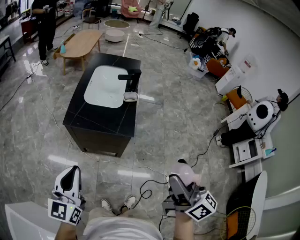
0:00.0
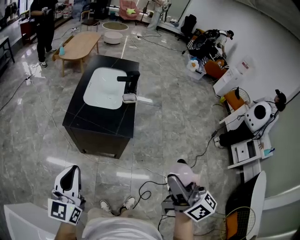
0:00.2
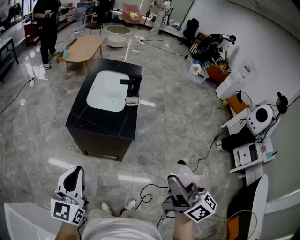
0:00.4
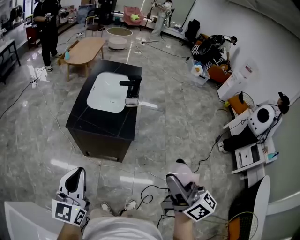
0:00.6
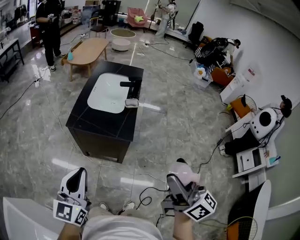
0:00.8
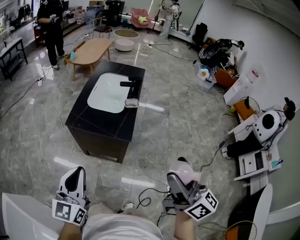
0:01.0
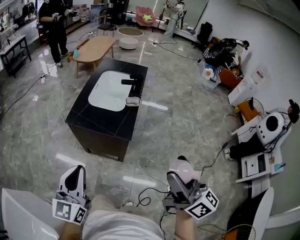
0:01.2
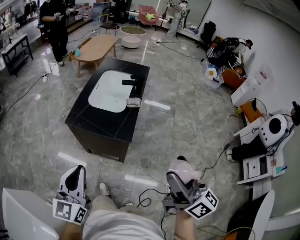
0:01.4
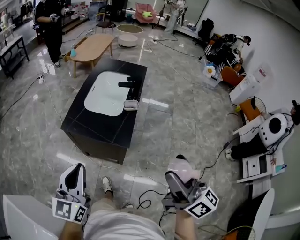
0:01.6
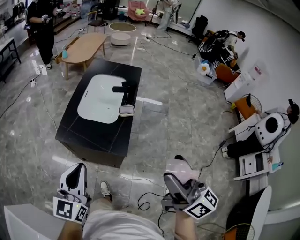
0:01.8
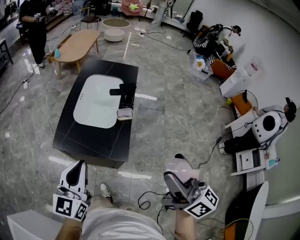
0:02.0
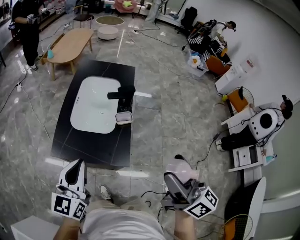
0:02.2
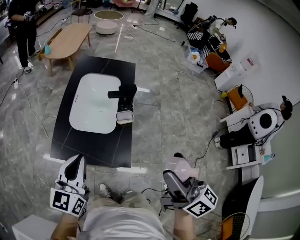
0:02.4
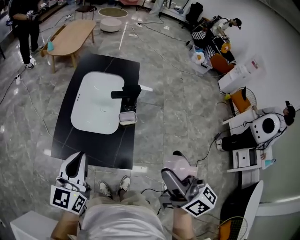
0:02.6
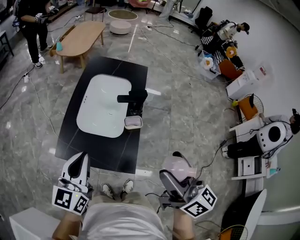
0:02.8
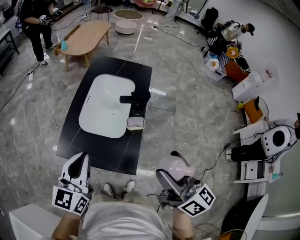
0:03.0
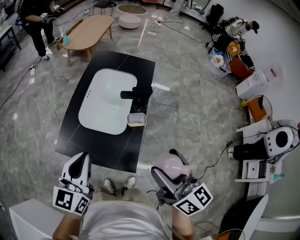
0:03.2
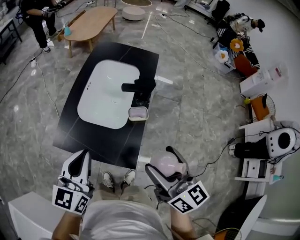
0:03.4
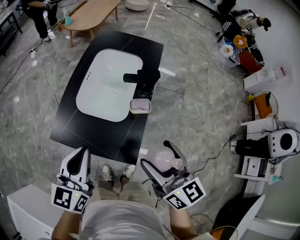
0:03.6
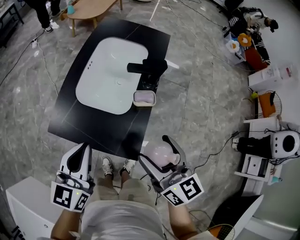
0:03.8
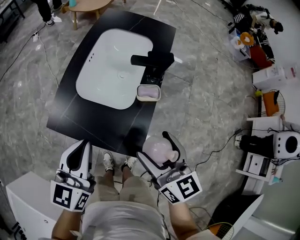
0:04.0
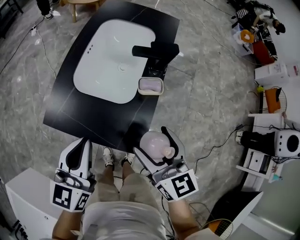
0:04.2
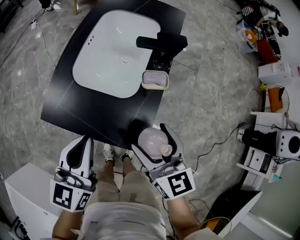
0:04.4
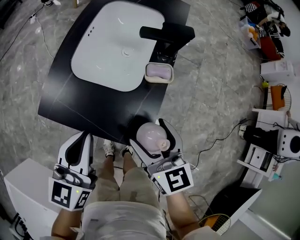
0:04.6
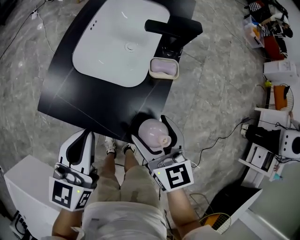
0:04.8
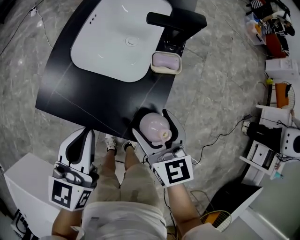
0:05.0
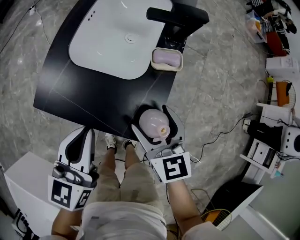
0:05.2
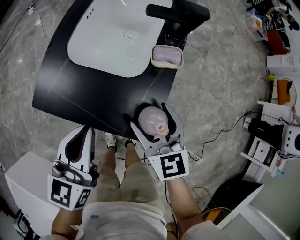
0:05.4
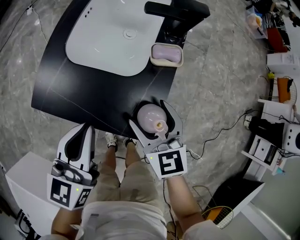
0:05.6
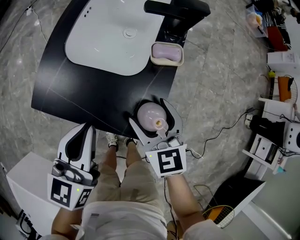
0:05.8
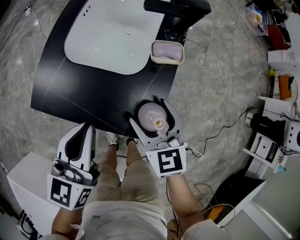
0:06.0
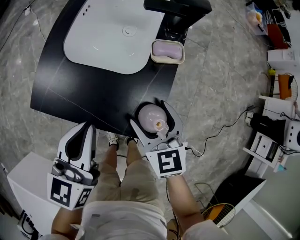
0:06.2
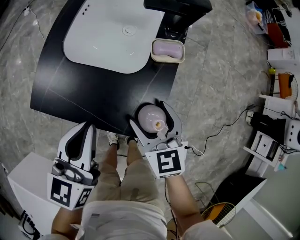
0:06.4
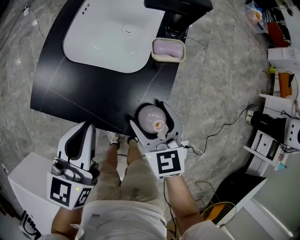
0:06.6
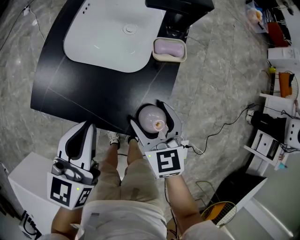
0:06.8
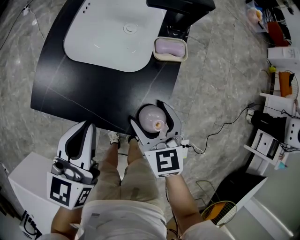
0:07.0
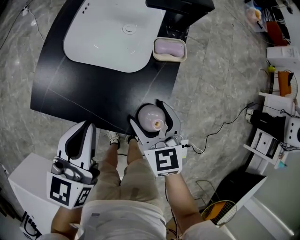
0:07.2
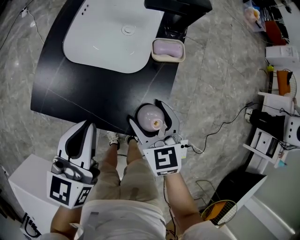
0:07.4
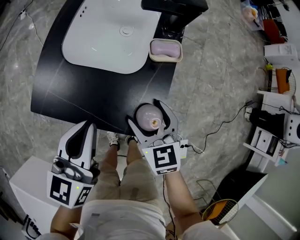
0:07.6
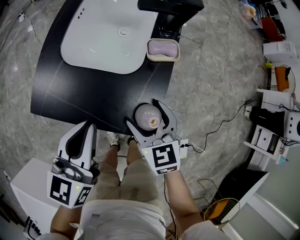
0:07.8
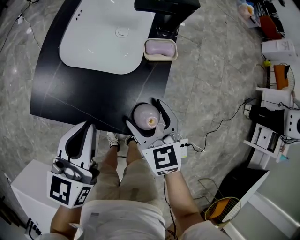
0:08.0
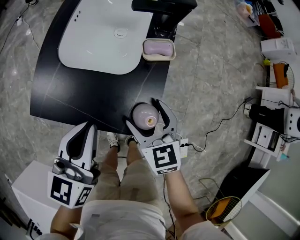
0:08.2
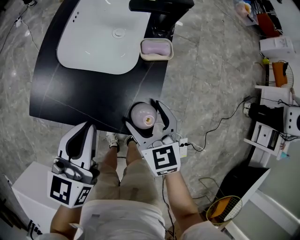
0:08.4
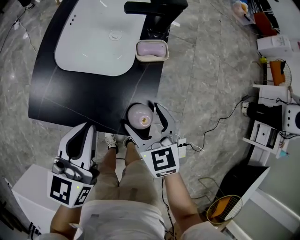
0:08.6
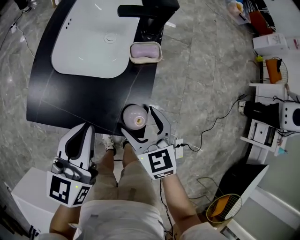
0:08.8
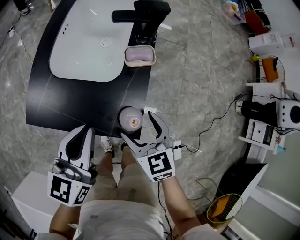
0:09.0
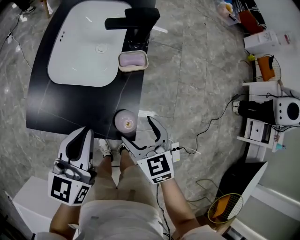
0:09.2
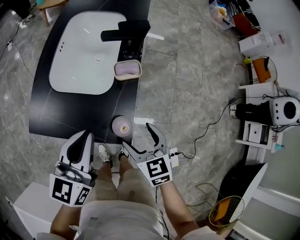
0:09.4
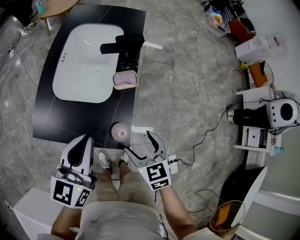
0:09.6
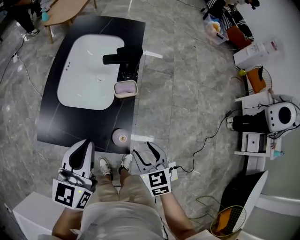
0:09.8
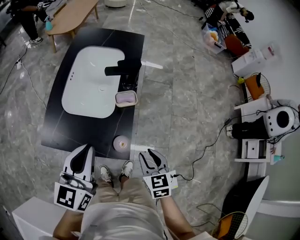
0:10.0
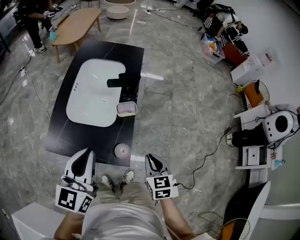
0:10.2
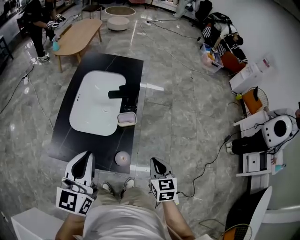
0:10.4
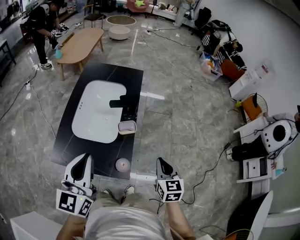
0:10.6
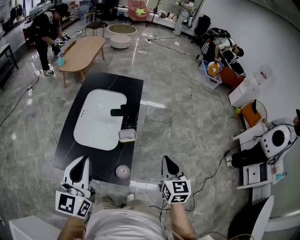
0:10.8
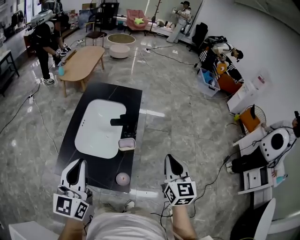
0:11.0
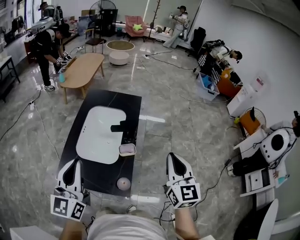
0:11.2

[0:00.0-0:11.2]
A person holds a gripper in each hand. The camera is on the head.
0:00.0 to 0:01.6: The left gripper moves to the right, approximately 10 cm. The right gripper travels to the right and forward by some 10 cm.
0:01.6 to 0:03.2: Both grippers move forward, some 25 cm.
0:03.2 to 0:04.8: The right gripper heads downward, covering about 25 cm, and rotates approximately 30 degrees, while the left gripper travels downward by about 15 cm.
0:04.8 to 0:06.4: The right gripper moves downward, some 10 cm.
0:06.4 to 0:08.0: The grippers move only a little.
0:08.0 to 0:09.6: The right gripper goes about 10 cm to the right and backward. The left gripper moves upward and to the right, roughly 10 cm.
0:09.6 to 0:11.2: The left gripper heads upward, covering roughly 20 cm, and rotates some 20 degrees. The right gripper travels upward by approximately 30 cm, points its fingers about 30 degrees further upward, and closes up.

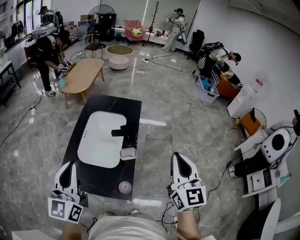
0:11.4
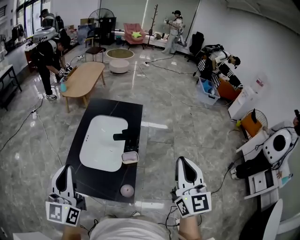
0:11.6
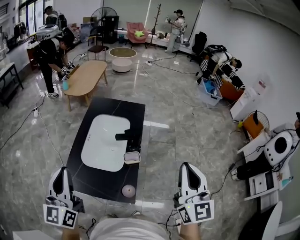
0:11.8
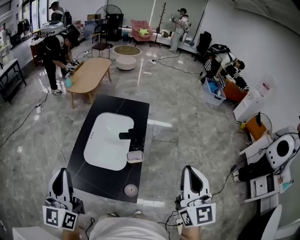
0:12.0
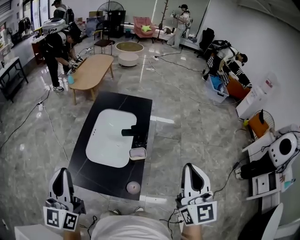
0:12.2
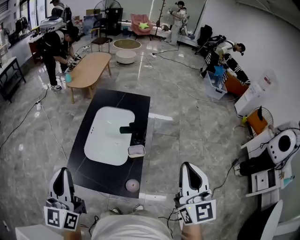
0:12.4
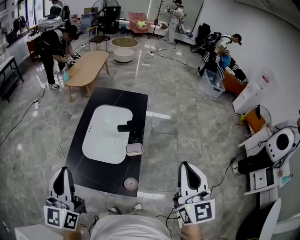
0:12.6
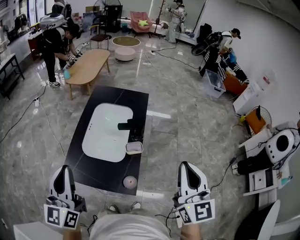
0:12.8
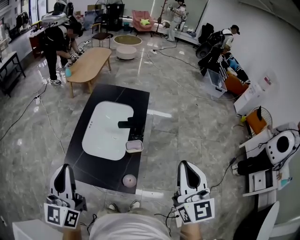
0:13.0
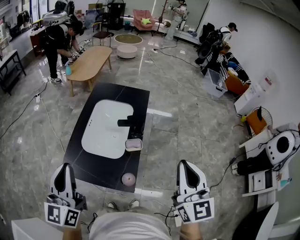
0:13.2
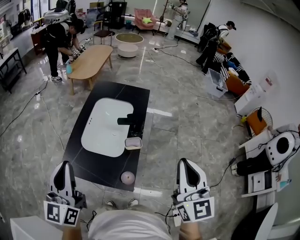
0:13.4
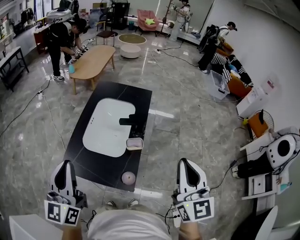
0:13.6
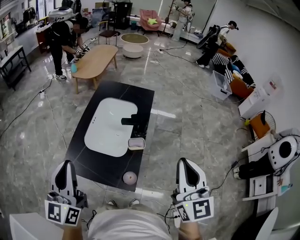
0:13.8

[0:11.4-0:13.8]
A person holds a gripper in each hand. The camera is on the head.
0:11.4 to 0:12.6: The left gripper ends up about 5 cm from where it was.
0:12.6 to 0:13.8: The grippers stay close to where they were, moving slightly.

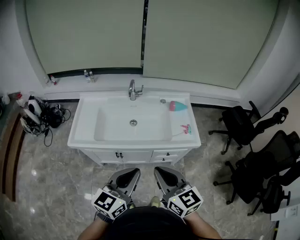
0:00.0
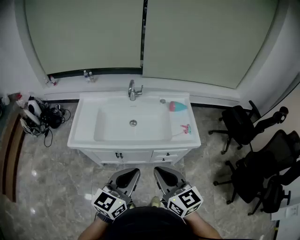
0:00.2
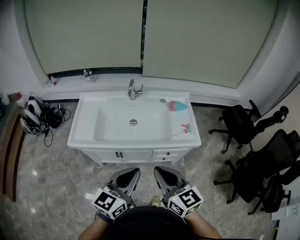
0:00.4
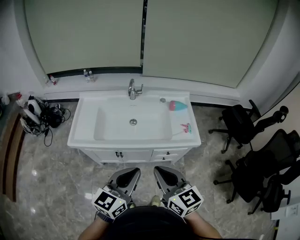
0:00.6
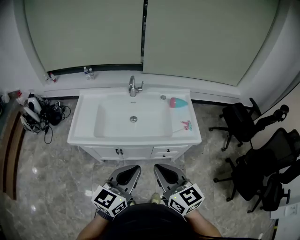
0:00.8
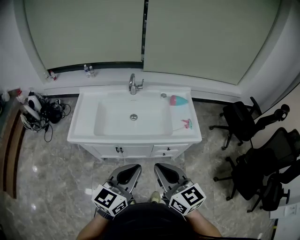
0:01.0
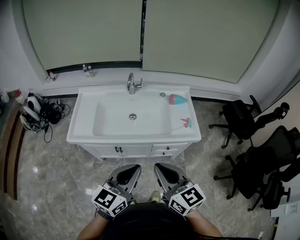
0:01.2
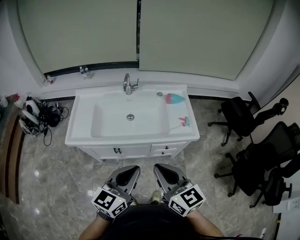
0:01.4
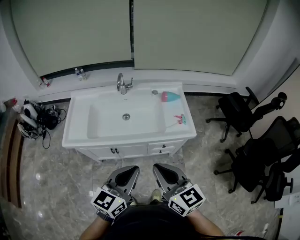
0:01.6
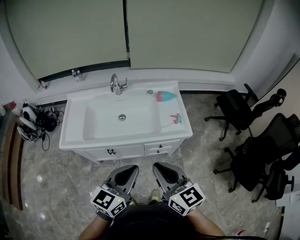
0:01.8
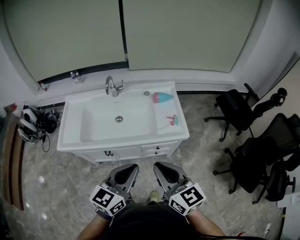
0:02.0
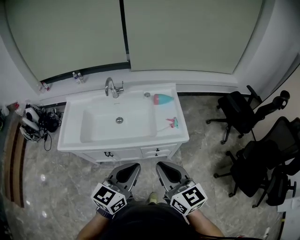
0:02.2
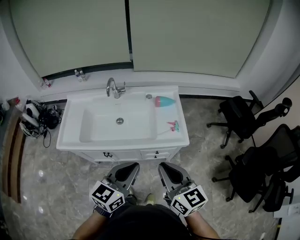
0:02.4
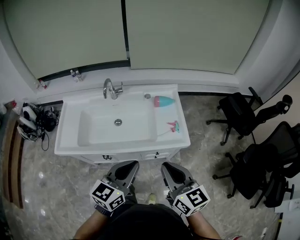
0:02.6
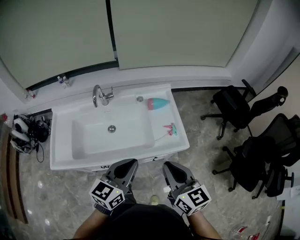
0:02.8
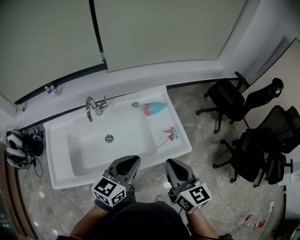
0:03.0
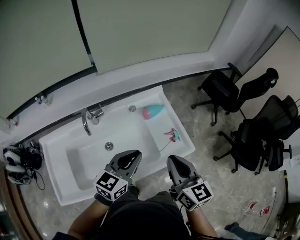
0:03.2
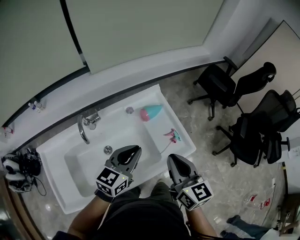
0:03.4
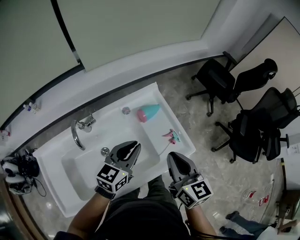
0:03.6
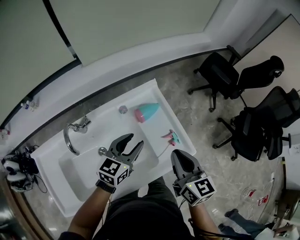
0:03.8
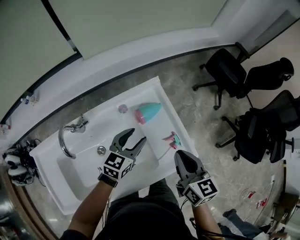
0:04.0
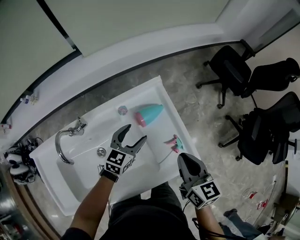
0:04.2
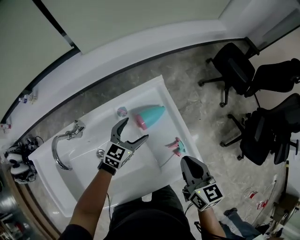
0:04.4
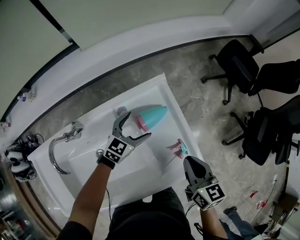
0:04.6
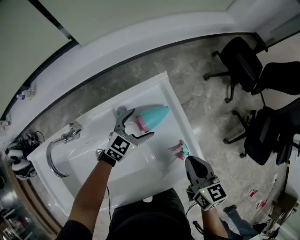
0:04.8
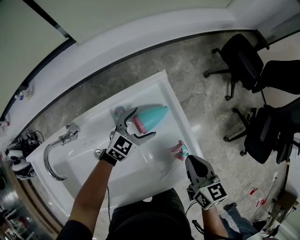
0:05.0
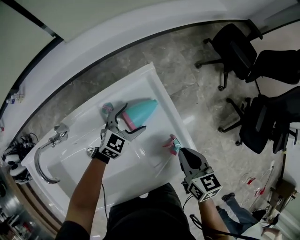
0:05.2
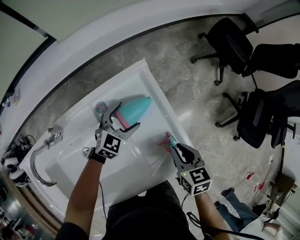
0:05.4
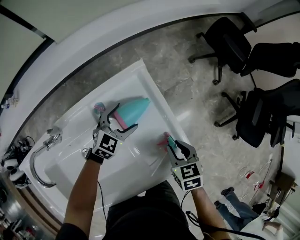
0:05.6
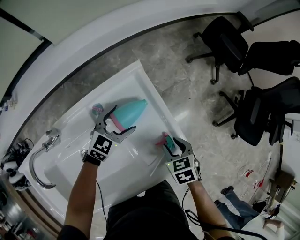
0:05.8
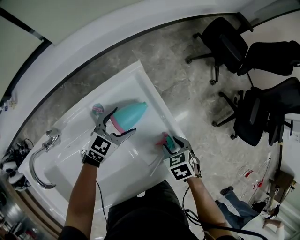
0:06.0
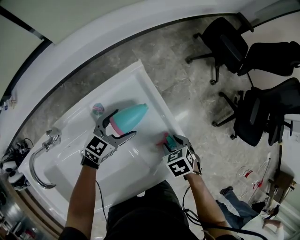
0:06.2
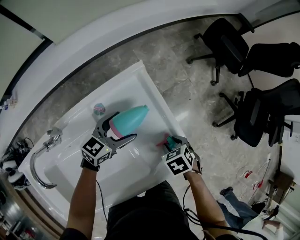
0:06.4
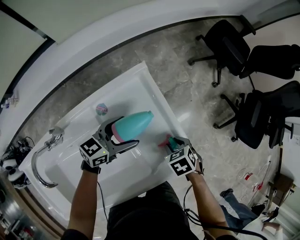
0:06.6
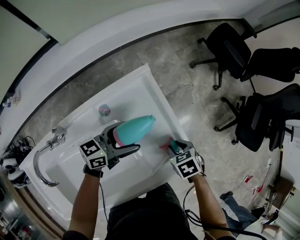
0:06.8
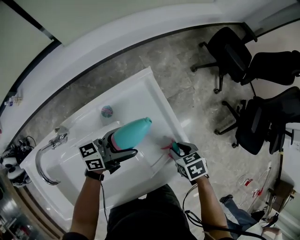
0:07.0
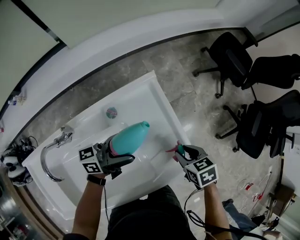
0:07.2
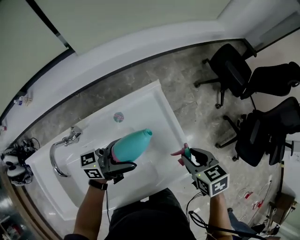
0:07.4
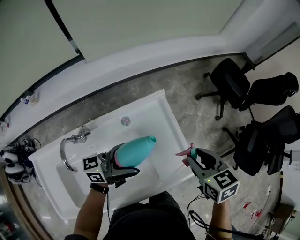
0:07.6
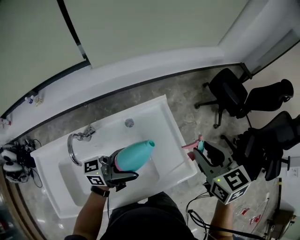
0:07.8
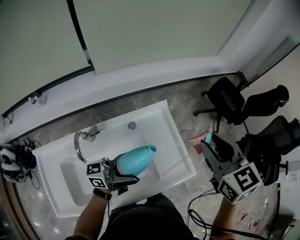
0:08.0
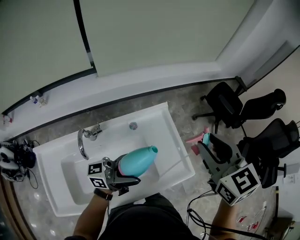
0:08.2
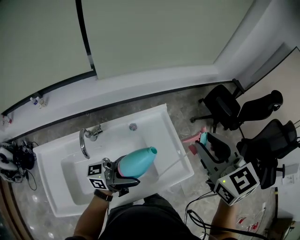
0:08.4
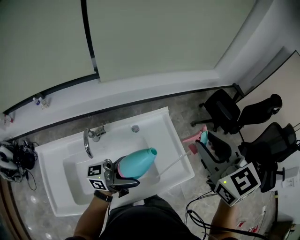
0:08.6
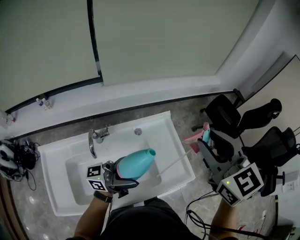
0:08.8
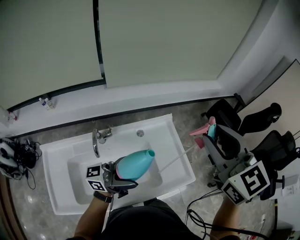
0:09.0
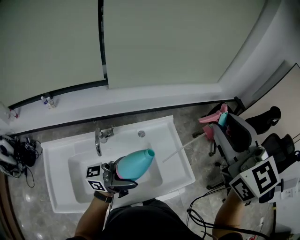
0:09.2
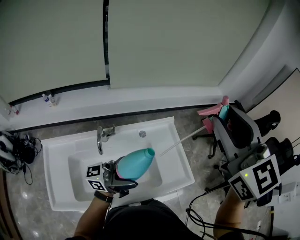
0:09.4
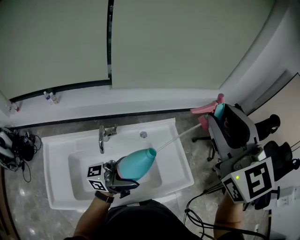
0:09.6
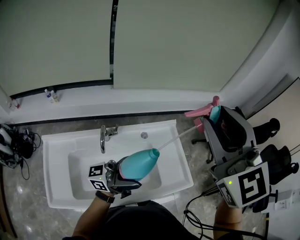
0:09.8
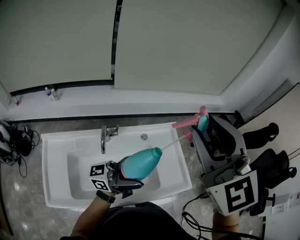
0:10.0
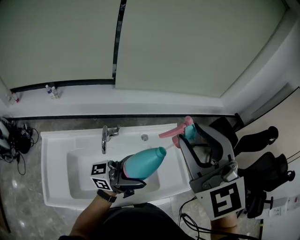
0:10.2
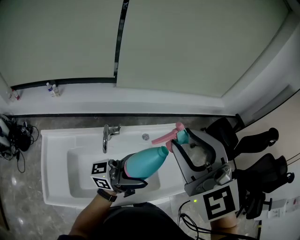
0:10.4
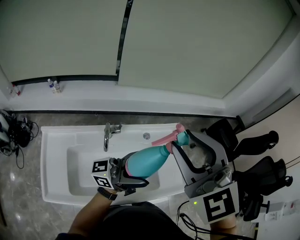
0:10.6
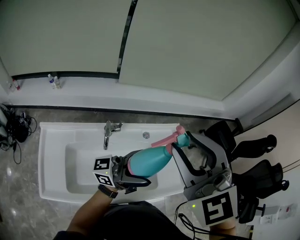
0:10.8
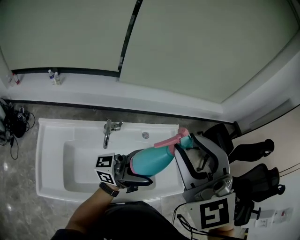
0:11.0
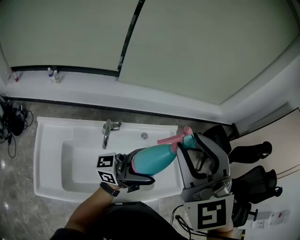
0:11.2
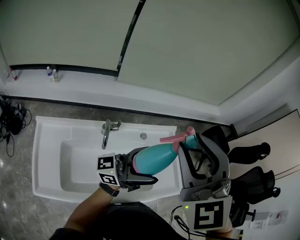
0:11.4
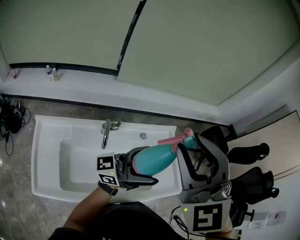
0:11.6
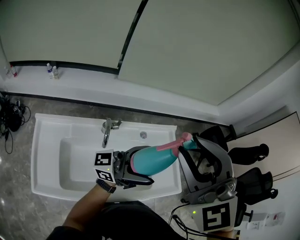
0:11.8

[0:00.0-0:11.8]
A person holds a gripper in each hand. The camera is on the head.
0:00.0 to 0:01.4: The grippers make only small movements.
0:01.4 to 0:03.0: The right gripper travels forward and to the right by about 30 cm, and turns by approximately 20 degrees; the left gripper heads forward, covering some 30 cm.
0:03.0 to 0:04.4: Both grippers move forward and downward, some 35 cm. The right gripper swivels about 20 degrees. The left gripper changes its angle by approximately 20 degrees, and opens.
0:04.4 to 0:06.0: The left gripper travels downward by approximately 5 cm. The right gripper travels downward by approximately 20 cm, tips its fingers downward by some 40 degrees, and opens its fingers.
0:06.0 to 0:07.4: The two grippers go some 15 cm upward. The left gripper points its fingers approximately 40 degrees further upward.
0:07.4 to 0:08.8: The left gripper moves upward and backward, roughly 25 cm, and changes its angle by roughly 20 degrees. Meanwhile the right gripper shifts approximately 35 cm upward, and angles its fingers upward, by approximately 30 degrees.
0:08.8 to 0:10.4: The right gripper heads to the left, backward and upward, covering roughly 20 cm, and rotates roughly 30 degrees, while the left gripper shifts some 5 cm upward.
0:10.4 to 0:11.8: There are only small adjustments of the grippers.
